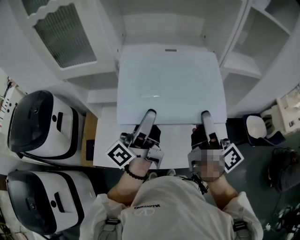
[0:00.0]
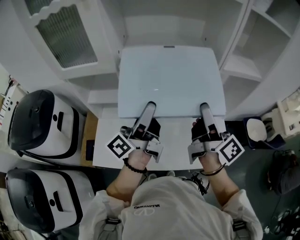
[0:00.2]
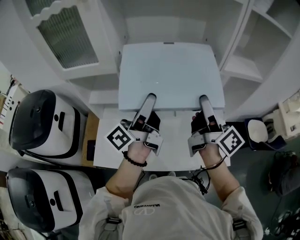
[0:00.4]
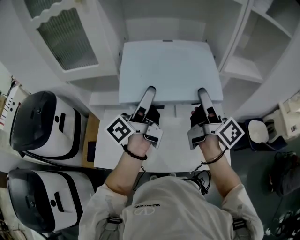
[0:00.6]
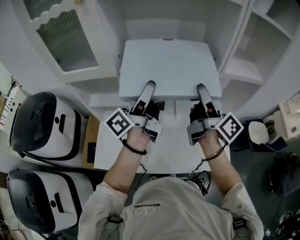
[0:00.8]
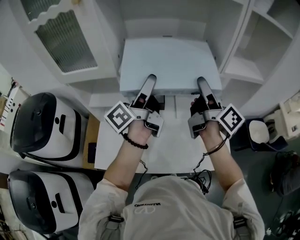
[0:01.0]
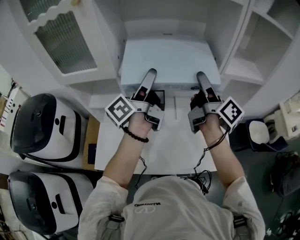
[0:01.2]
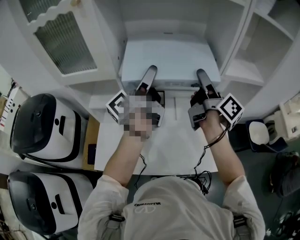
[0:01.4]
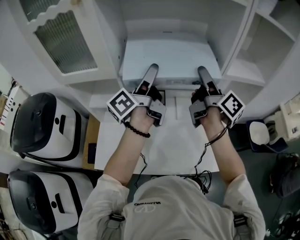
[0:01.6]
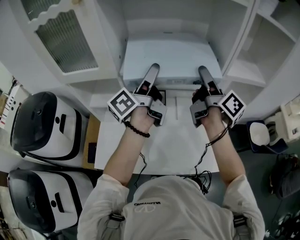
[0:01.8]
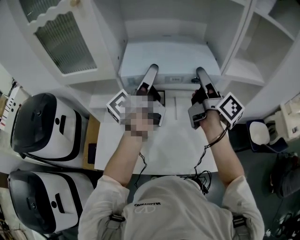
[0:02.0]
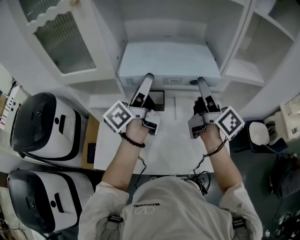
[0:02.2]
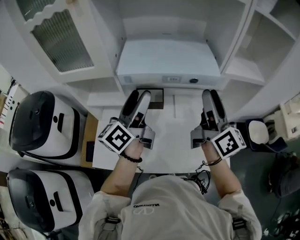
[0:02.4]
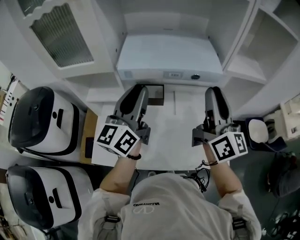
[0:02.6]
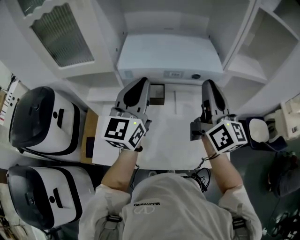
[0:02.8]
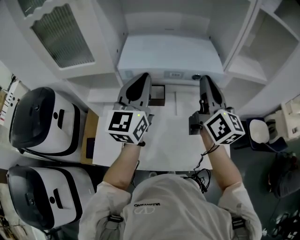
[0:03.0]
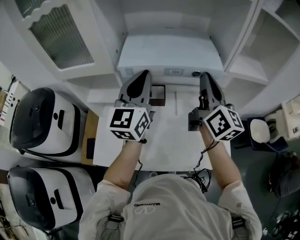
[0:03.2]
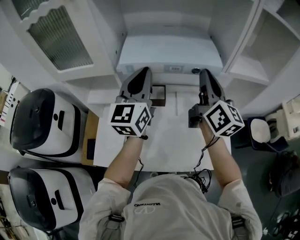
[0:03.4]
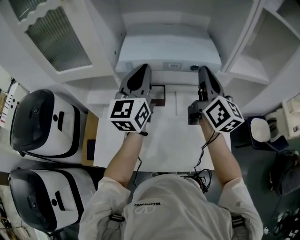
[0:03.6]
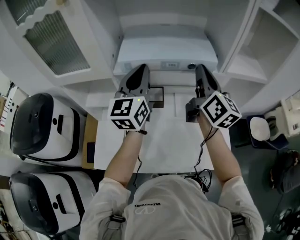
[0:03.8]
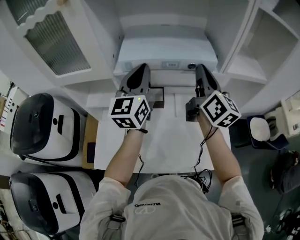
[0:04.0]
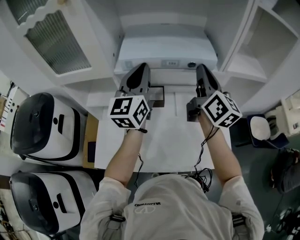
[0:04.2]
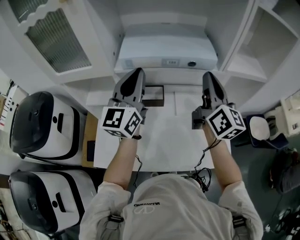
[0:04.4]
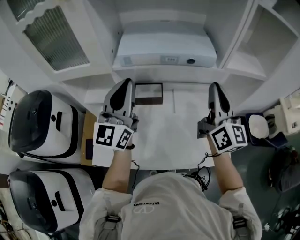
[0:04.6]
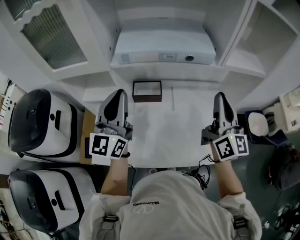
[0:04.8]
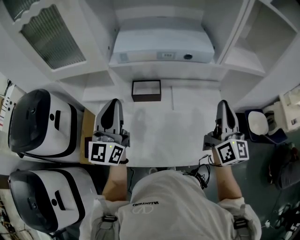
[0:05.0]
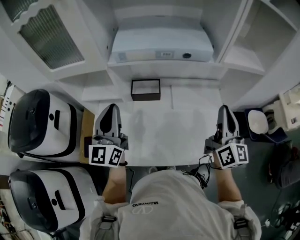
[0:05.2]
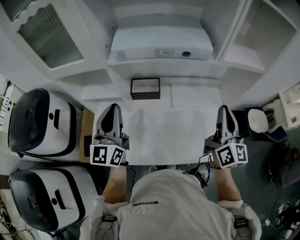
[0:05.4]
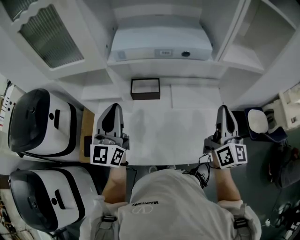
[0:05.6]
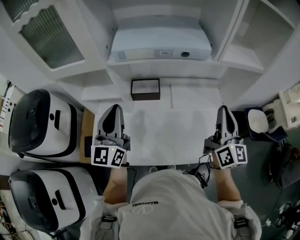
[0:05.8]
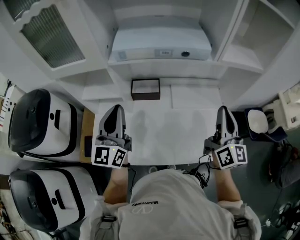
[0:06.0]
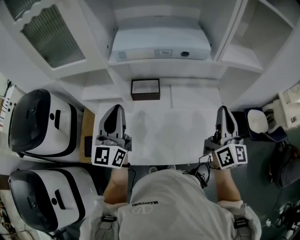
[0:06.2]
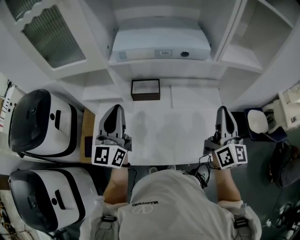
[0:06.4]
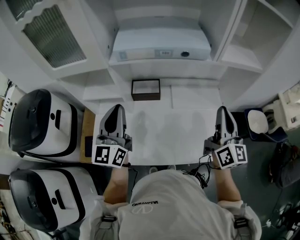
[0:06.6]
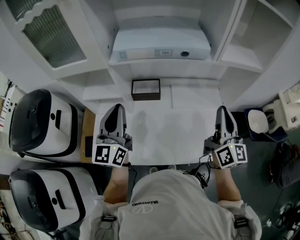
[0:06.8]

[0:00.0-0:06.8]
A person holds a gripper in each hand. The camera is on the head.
0:00.0 to 0:01.4: The grippers both shift forward by roughly 15 cm.
0:01.4 to 0:02.8: The two grippers go about 5 cm backward. The right gripper twists approximately 40 degrees counterclockwise, seen from behind, and closes up. The left gripper twists approximately 70 degrees clockwise, seen from behind, and closes up.
0:02.8 to 0:04.0: Both grippers move forward, approximately 10 cm.
0:04.0 to 0:05.4: The left gripper shifts some 20 cm backward, downward and to the left, while the right gripper travels backward, to the right and downward by roughly 20 cm.
0:05.4 to 0:06.8: The grippers move only a little.

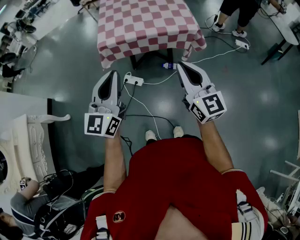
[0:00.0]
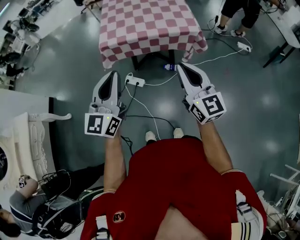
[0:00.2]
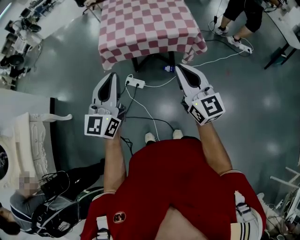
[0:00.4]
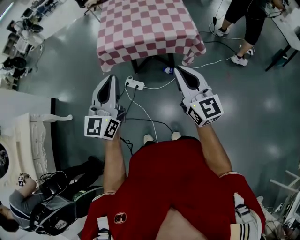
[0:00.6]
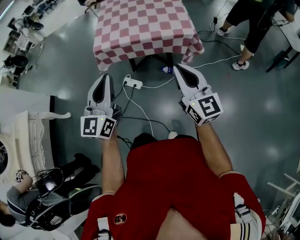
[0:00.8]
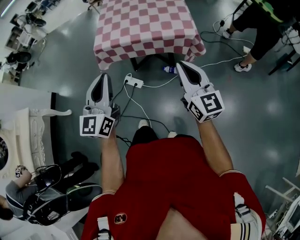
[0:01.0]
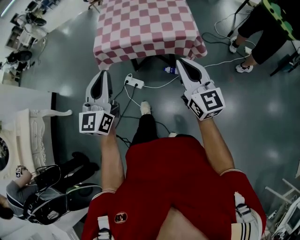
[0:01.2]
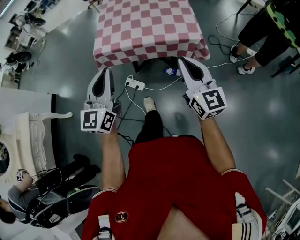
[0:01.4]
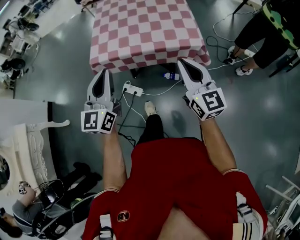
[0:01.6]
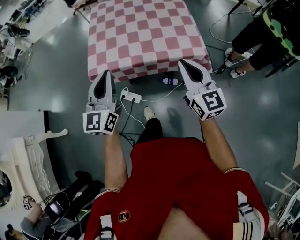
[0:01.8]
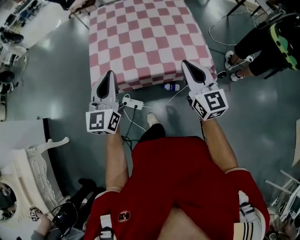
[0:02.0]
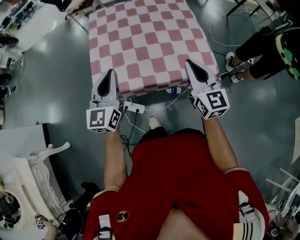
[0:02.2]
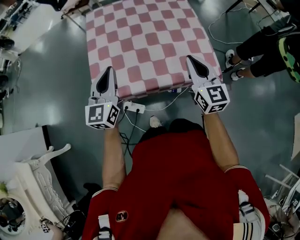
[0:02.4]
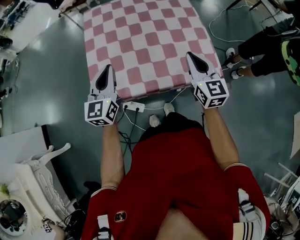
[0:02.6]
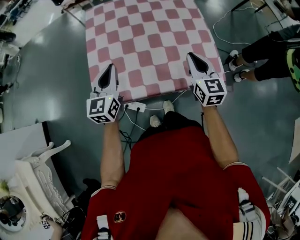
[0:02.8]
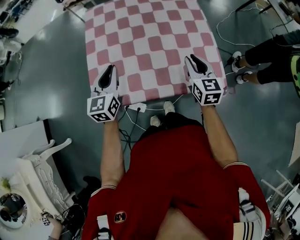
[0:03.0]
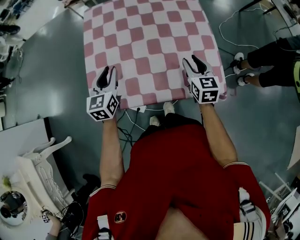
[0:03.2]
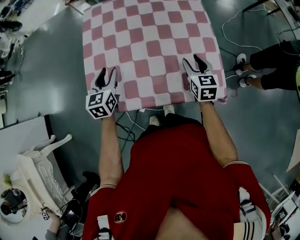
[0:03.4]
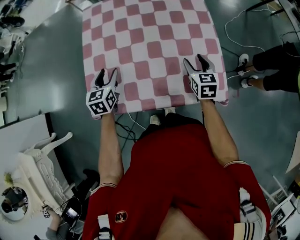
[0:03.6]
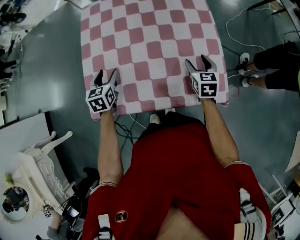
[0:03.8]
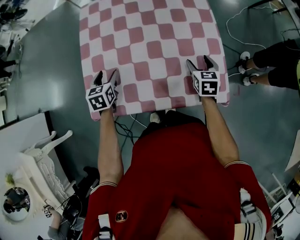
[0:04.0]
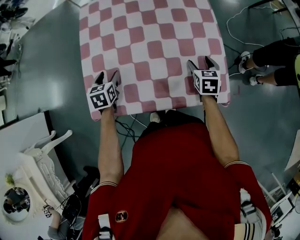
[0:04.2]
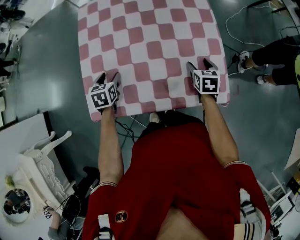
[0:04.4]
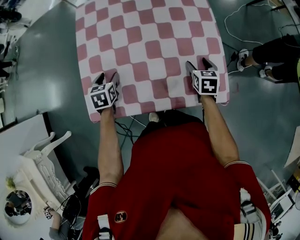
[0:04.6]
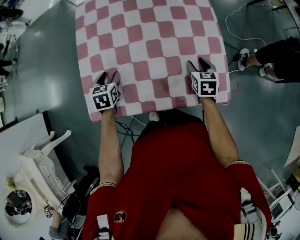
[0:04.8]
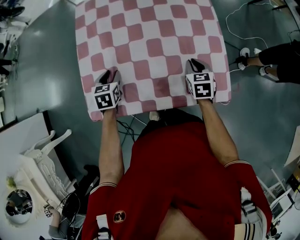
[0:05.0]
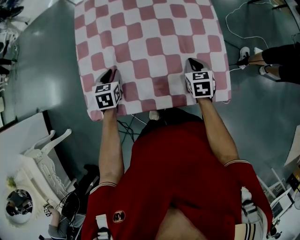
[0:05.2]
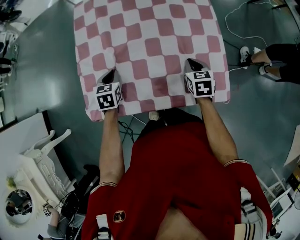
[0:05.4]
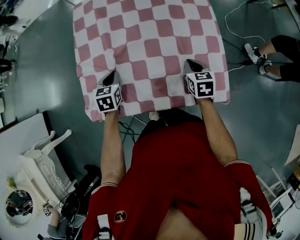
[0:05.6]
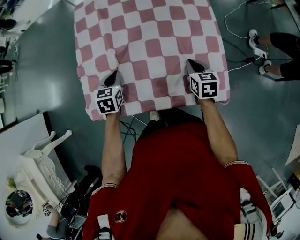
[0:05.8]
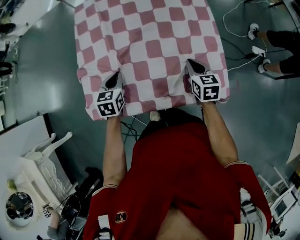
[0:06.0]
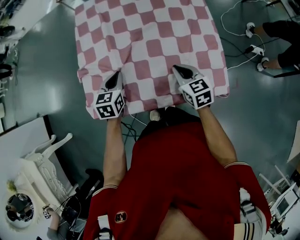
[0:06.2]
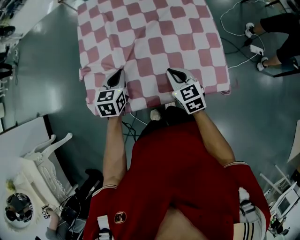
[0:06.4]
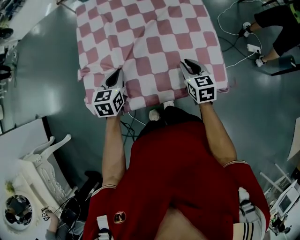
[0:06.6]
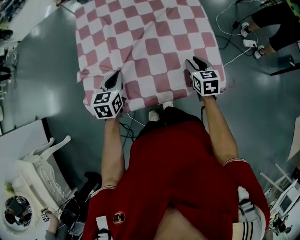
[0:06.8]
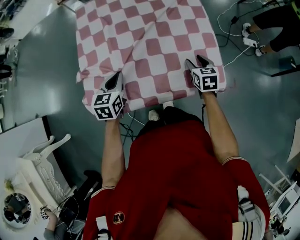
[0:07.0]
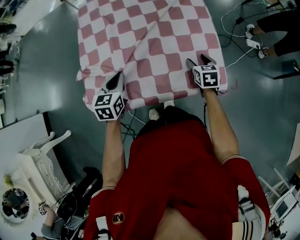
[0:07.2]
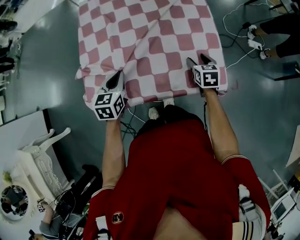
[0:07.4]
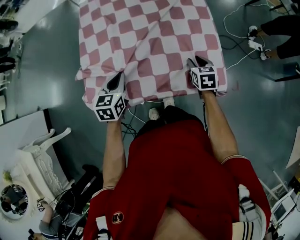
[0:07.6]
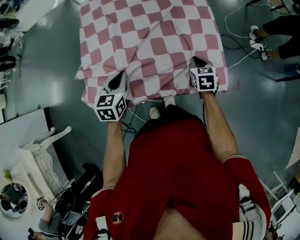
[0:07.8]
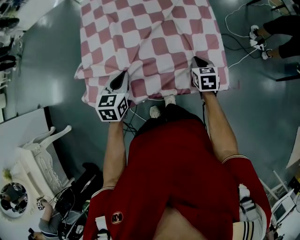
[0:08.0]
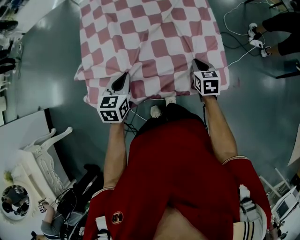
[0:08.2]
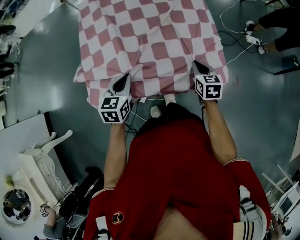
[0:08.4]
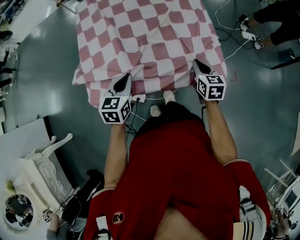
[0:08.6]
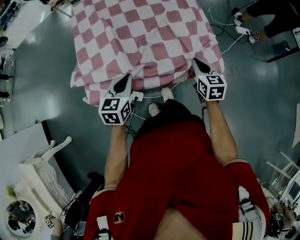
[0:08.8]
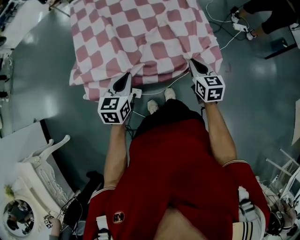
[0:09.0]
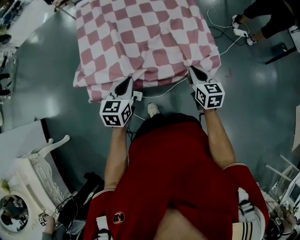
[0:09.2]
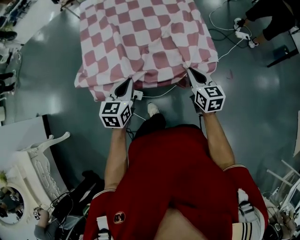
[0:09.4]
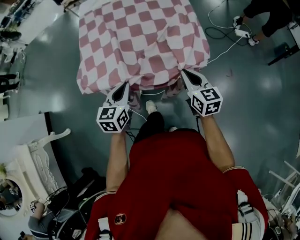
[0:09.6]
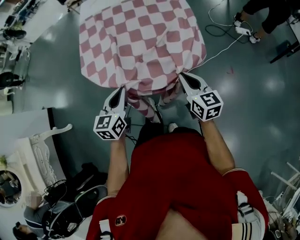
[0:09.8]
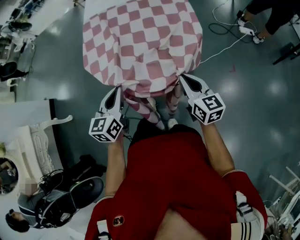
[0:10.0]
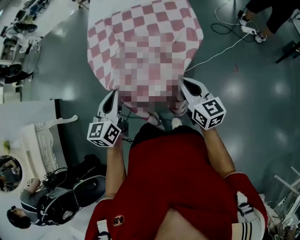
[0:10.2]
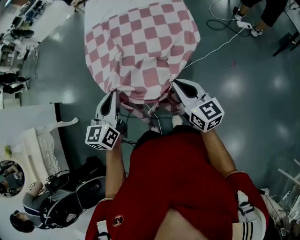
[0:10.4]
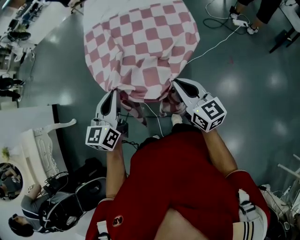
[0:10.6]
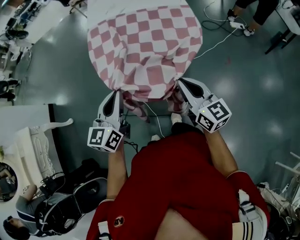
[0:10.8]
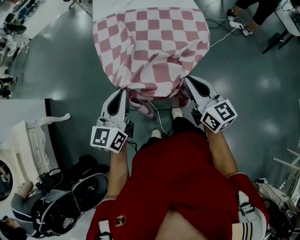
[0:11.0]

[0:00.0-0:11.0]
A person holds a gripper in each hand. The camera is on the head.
0:00.0 to 0:01.6: The grippers both shift forward and to the right by approximately 15 cm.
0:01.6 to 0:03.2: The two grippers go approximately 40 cm forward and downward. The right gripper turns by approximately 30 degrees, and opens up; the left gripper rotates approximately 30 degrees, and opens.
0:03.2 to 0:04.8: Both grippers travel together downward, about 15 cm. The right gripper turns by approximately 20 degrees. The left gripper points its fingers roughly 30 degrees further downward, and opens its fingers.
0:04.8 to 0:06.2: The left gripper heads upward and to the right, covering approximately 10 cm, and closes its fingers, while the right gripper heads to the left and upward, covering approximately 10 cm, swivels roughly 20 degrees, and closes up.
0:06.2 to 0:07.8: The left gripper moves backward, roughly 5 cm. Meanwhile the right gripper travels to the right and downward by about 15 cm, changes its angle by roughly 20 degrees, and opens and closes again.
0:07.8 to 0:09.4: The right gripper is displaced backward and upward by some 25 cm, and swivels approximately 20 degrees. Meanwhile the left gripper shifts roughly 15 cm backward.
0:09.4 to 0:11.0: Both grippers travel together backward, roughly 35 cm. The left gripper changes its angle by roughly 20 degrees. Meanwhile the right gripper turns by roughly 20 degrees.

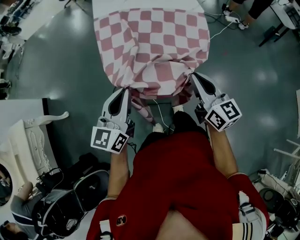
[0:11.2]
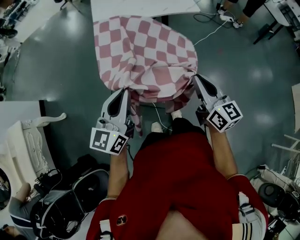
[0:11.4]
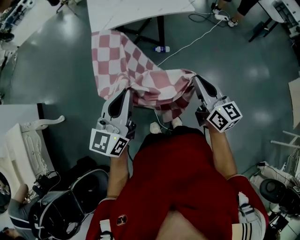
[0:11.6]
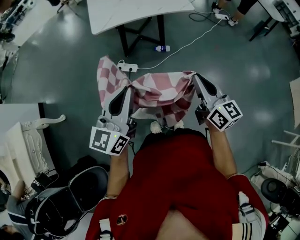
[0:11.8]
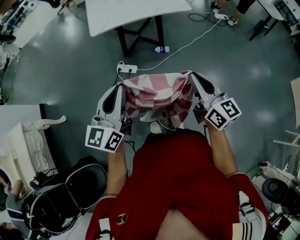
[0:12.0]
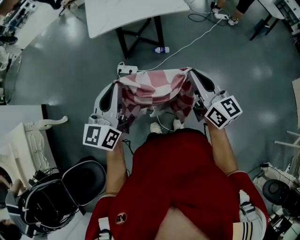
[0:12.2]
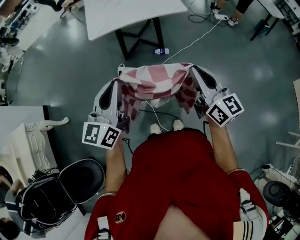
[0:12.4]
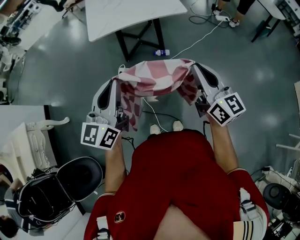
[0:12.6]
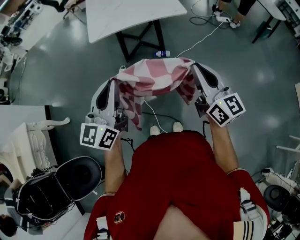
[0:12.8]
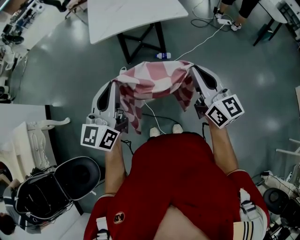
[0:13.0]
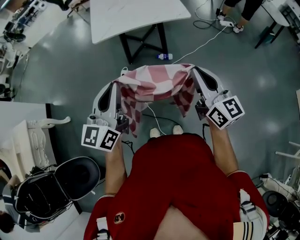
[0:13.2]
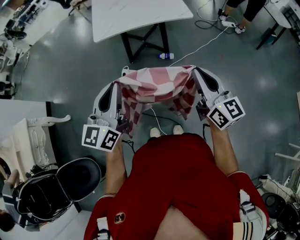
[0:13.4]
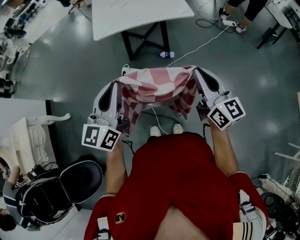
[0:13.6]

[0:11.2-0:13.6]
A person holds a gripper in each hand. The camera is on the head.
0:11.2 to 0:12.4: The right gripper goes some 15 cm to the right and backward. The left gripper travels to the right, backward and upward by approximately 15 cm.
0:12.4 to 0:13.6: The grippers move only a little.

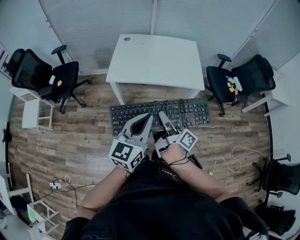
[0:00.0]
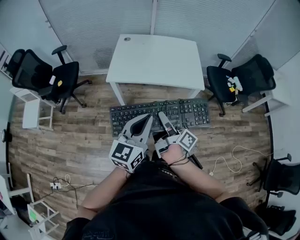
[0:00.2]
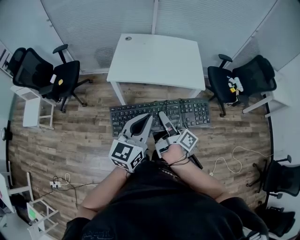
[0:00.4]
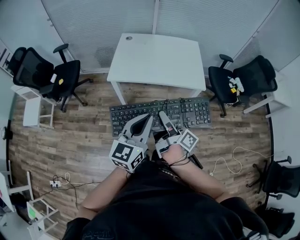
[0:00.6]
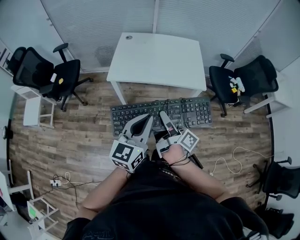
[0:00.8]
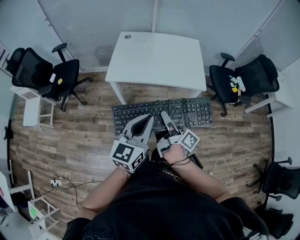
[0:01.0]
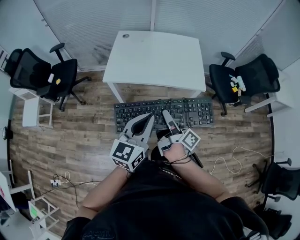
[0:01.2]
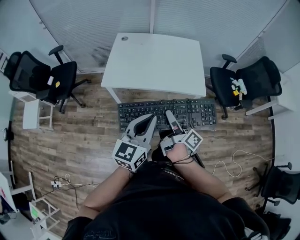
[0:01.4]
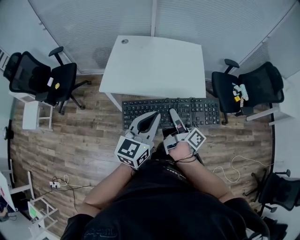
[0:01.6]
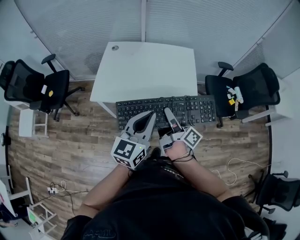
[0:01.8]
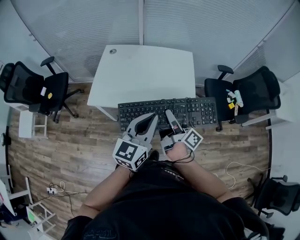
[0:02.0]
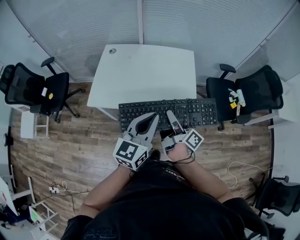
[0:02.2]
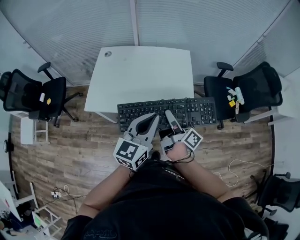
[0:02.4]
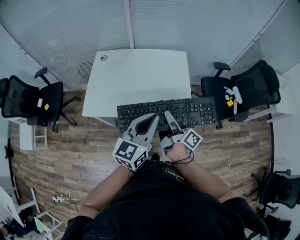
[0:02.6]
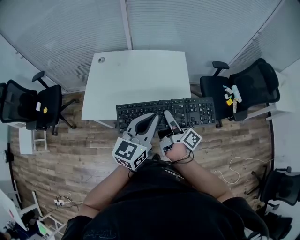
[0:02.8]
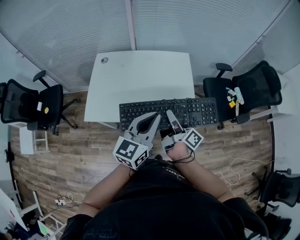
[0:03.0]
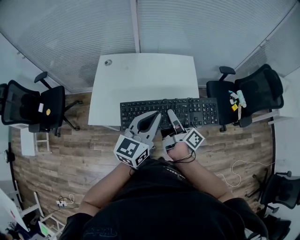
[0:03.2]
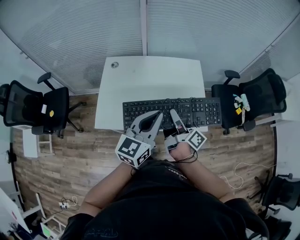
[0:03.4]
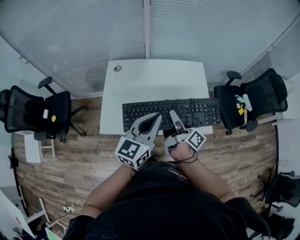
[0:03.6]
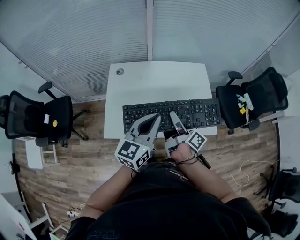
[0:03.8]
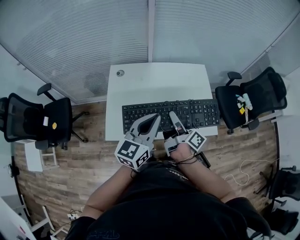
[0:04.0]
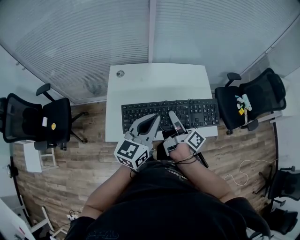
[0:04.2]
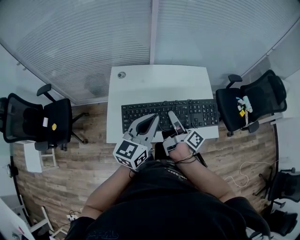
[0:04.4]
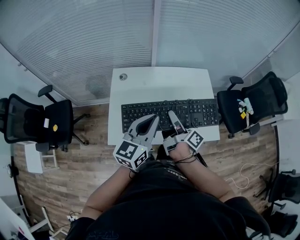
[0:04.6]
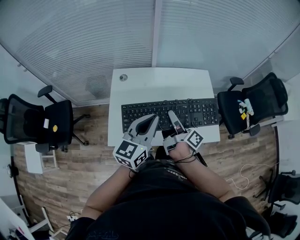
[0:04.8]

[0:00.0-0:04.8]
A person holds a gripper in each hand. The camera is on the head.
0:00.0 to 0:01.6: The two grippers go approximately 15 cm forward and to the right.
0:01.6 to 0:03.2: Both grippers move forward, about 20 cm.
0:03.2 to 0:04.8: Both grippers travel together to the left and forward, about 20 cm.
